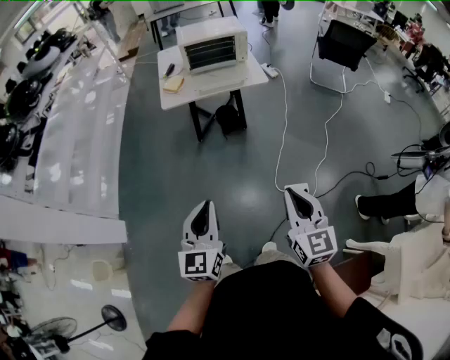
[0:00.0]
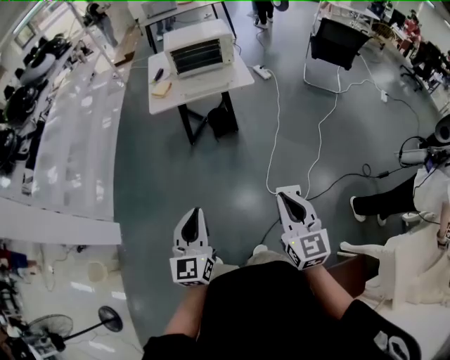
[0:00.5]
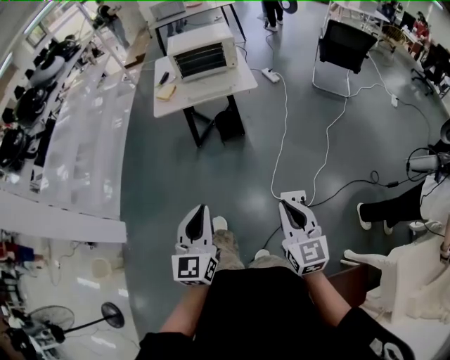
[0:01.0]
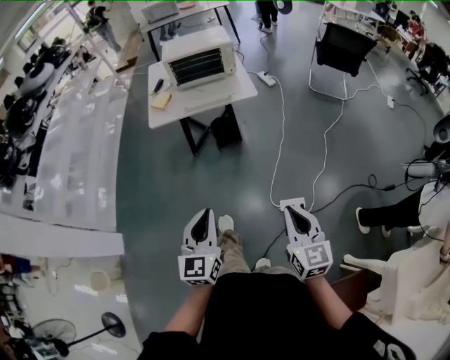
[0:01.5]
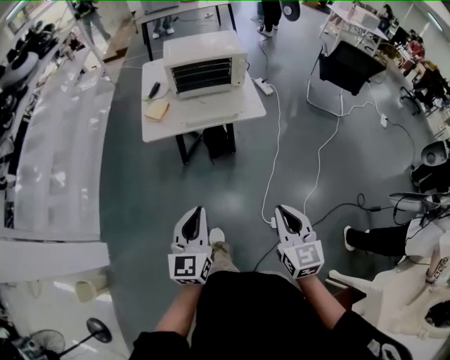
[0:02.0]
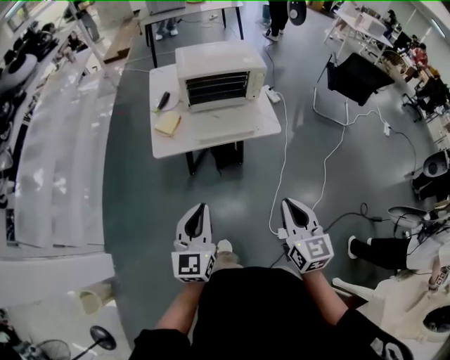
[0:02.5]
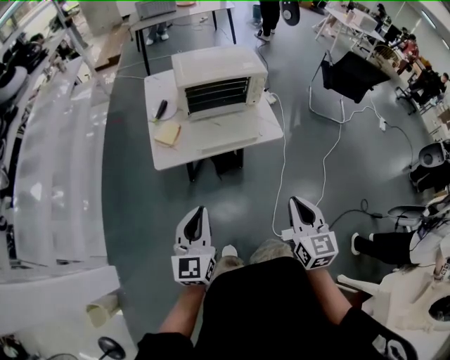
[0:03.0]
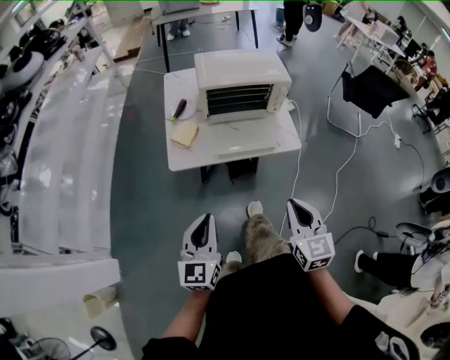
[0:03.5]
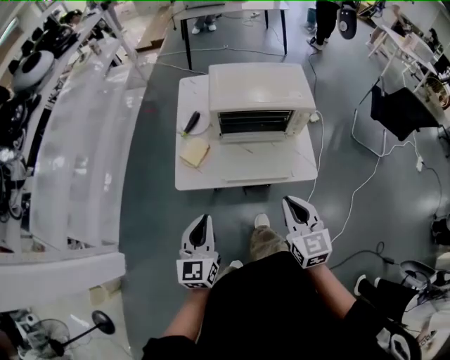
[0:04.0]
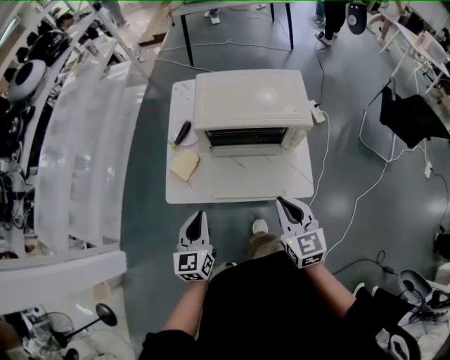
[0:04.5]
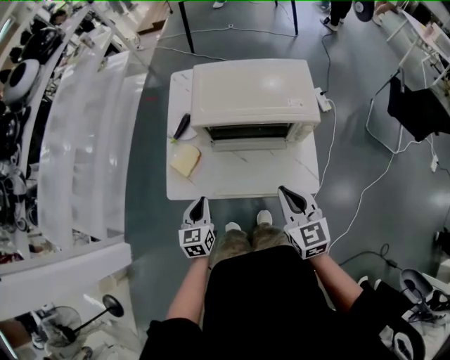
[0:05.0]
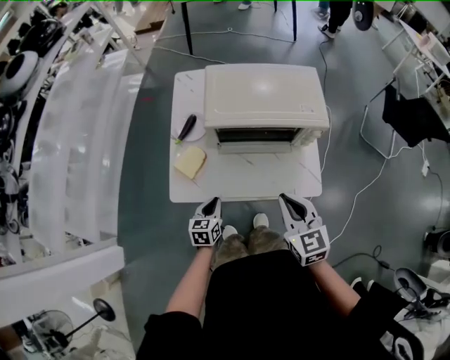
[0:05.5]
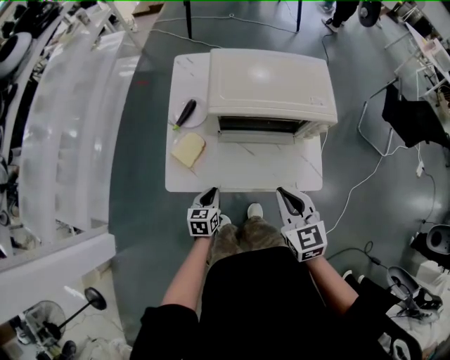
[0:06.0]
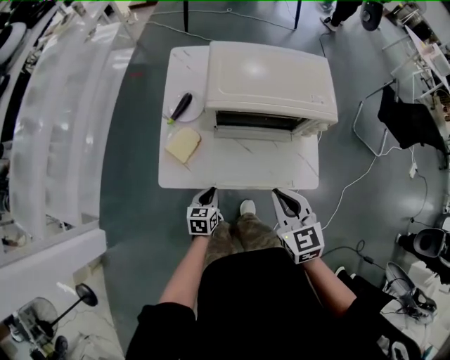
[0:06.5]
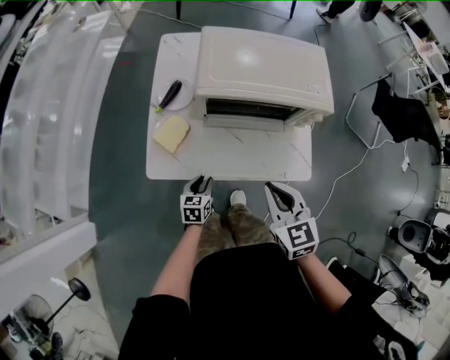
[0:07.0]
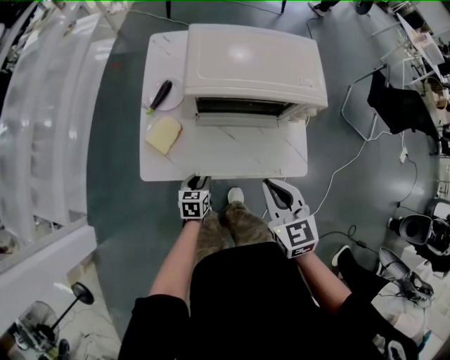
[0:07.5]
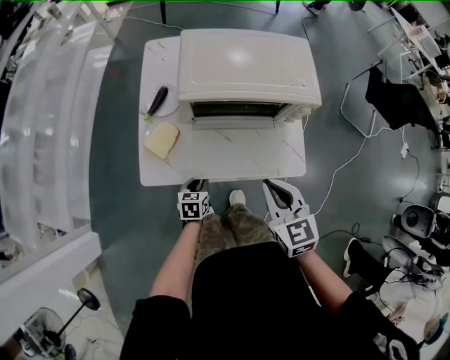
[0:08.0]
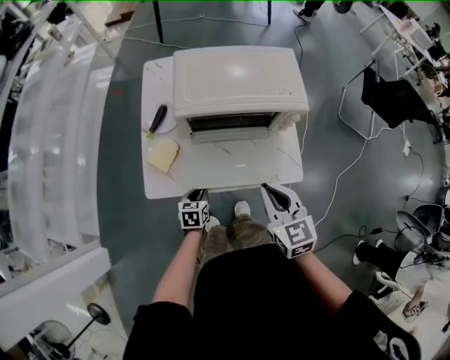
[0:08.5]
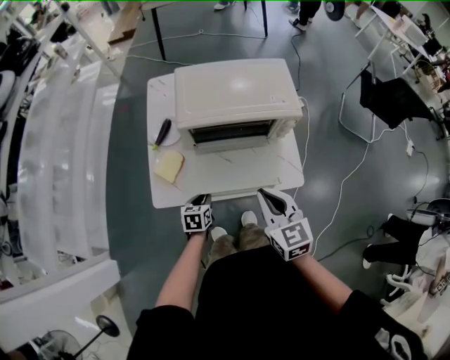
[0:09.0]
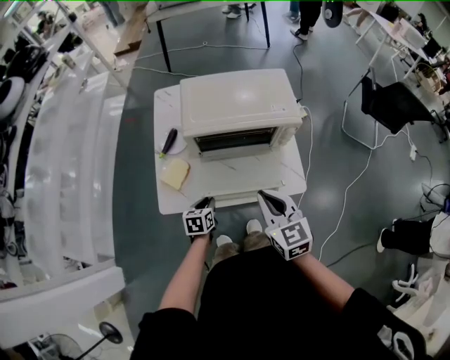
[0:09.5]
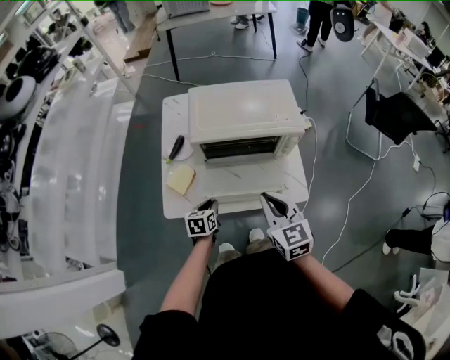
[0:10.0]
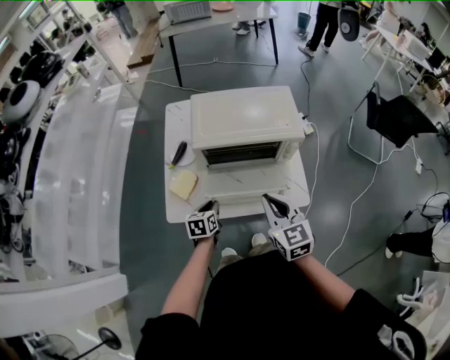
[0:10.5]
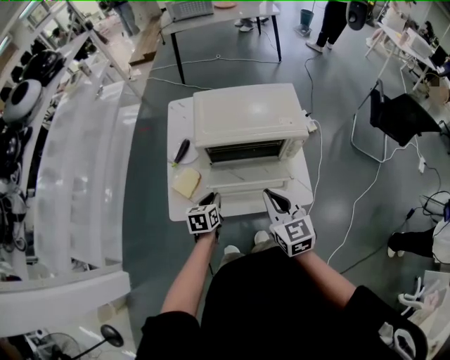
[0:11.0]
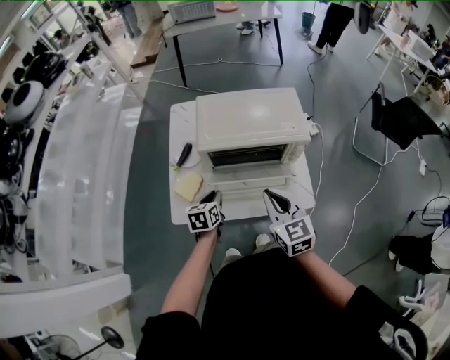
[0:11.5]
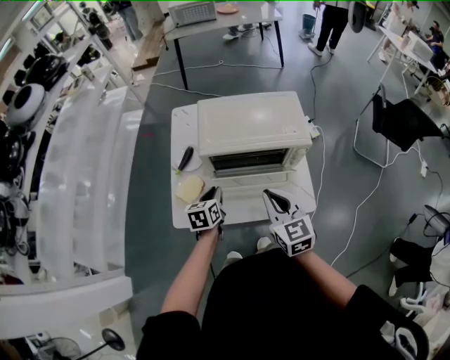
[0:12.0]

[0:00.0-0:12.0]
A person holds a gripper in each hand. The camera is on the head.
0:00.0 to 0:02.0: The grippers both shift forward by some 25 cm.
0:02.0 to 0:04.0: Both grippers move forward, approximately 35 cm.
0:04.0 to 0:06.0: The left gripper moves downward and forward, roughly 30 cm, and swivels roughly 30 degrees, while the right gripper moves forward and downward, approximately 15 cm.
0:06.0 to 0:08.0: The left gripper travels downward by about 5 cm.
0:08.0 to 0:10.0: The left gripper shifts about 10 cm upward; the right gripper goes approximately 5 cm upward.
0:10.0 to 0:12.0: The left gripper moves upward and forward, approximately 10 cm.

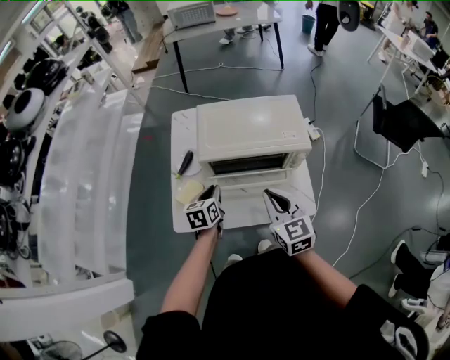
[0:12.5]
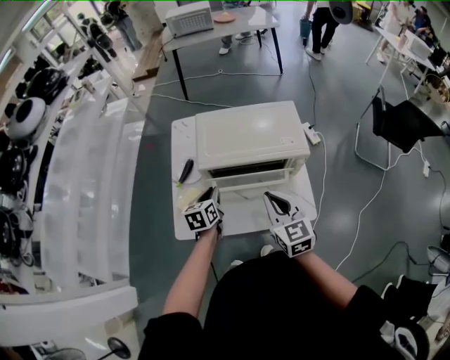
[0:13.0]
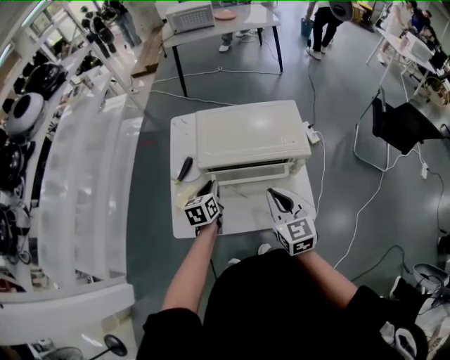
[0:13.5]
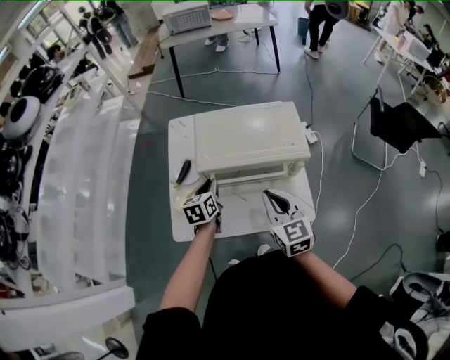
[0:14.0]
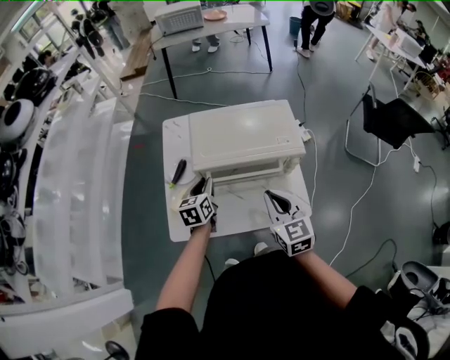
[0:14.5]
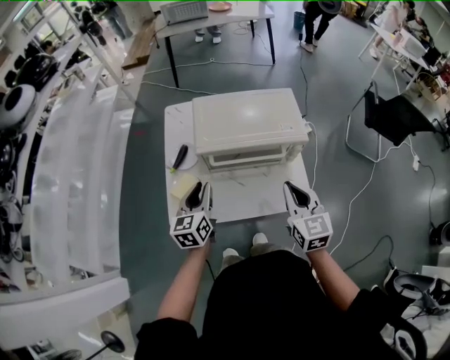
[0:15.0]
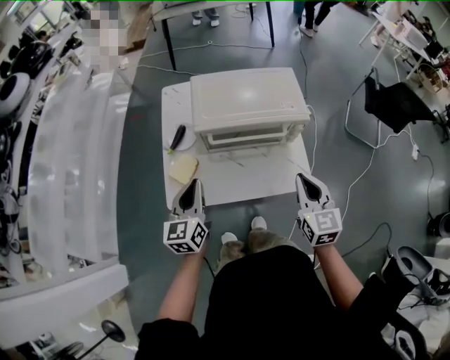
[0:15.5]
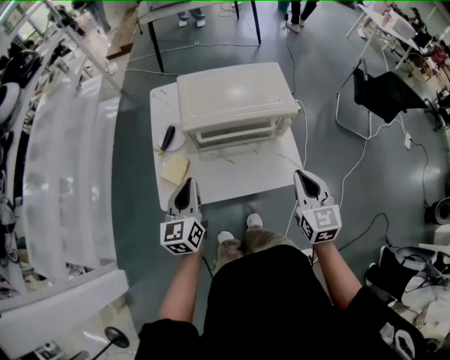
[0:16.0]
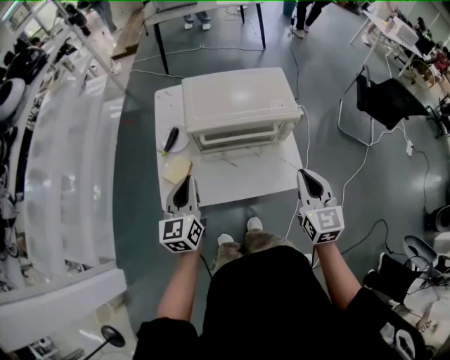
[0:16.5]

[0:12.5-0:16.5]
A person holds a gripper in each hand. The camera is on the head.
0:12.5 to 0:14.5: The left gripper moves forward, about 5 cm.
0:14.5 to 0:16.5: The left gripper goes roughly 20 cm backward and upward, and changes its angle by some 20 degrees; the right gripper is displaced to the right and backward by some 10 cm.

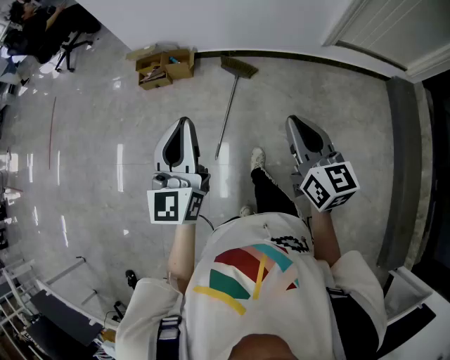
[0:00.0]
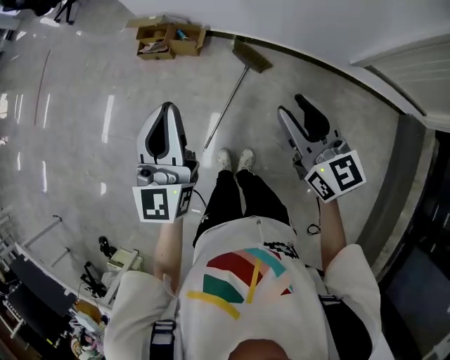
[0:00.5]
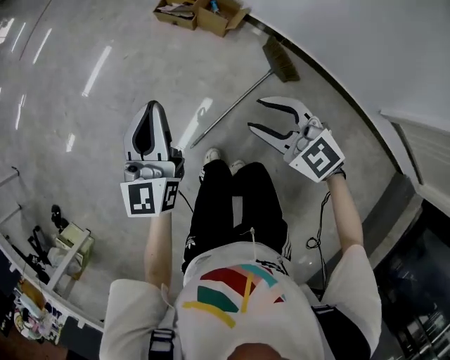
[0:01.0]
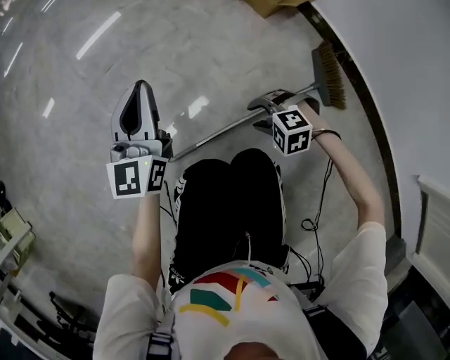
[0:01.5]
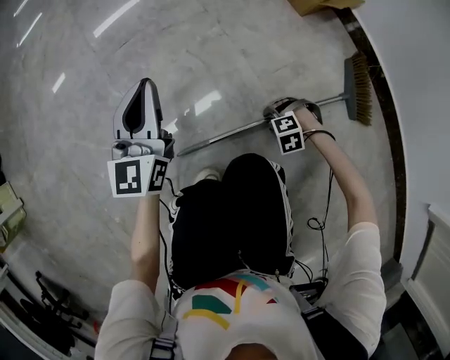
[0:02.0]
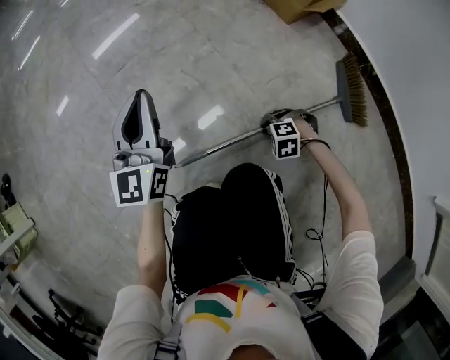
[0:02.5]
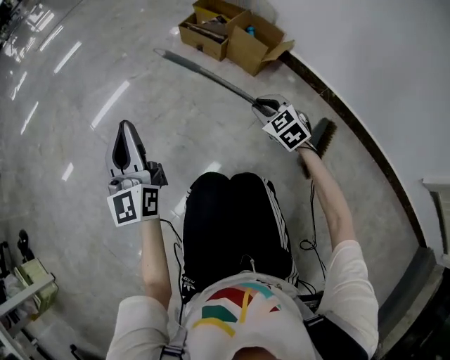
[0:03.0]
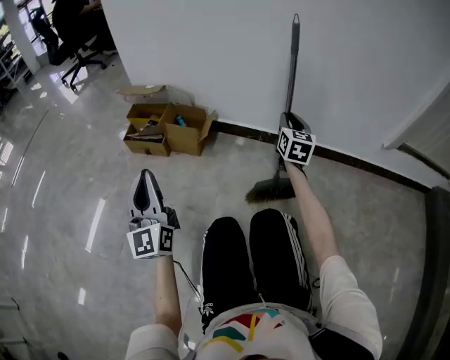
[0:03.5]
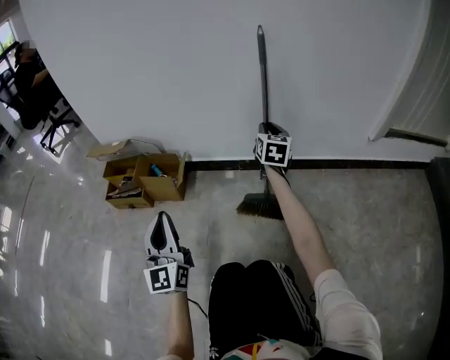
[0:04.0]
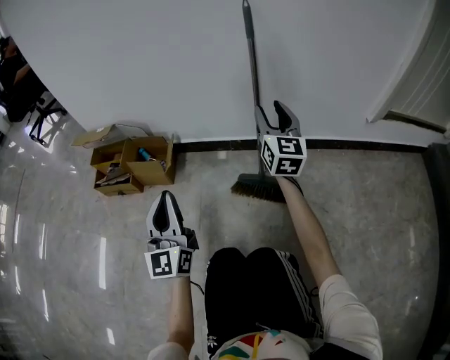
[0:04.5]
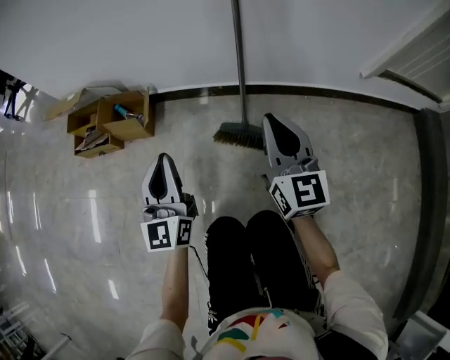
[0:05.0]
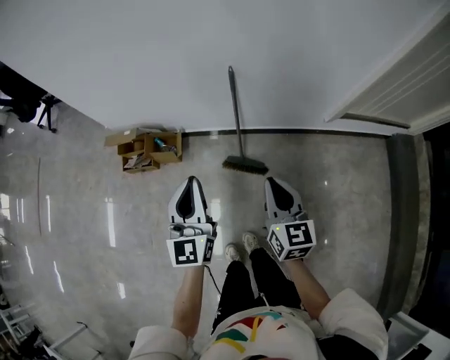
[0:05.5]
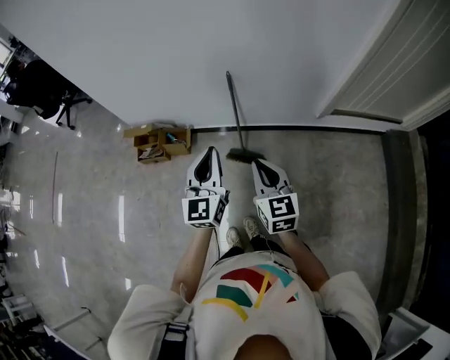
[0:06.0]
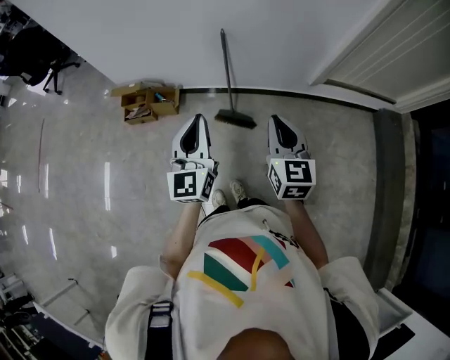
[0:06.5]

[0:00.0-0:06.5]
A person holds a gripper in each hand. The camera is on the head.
0:00.0 to 0:02.0: The grippers both shift downward by approximately 90 cm. The right gripper tips its fingers downward by about 70 degrees, and opens up; the left gripper turns by approximately 50 degrees.
0:02.0 to 0:04.5: The right gripper moves upward, about 50 cm, tilts its fingers some 90 degrees upward, and closes and opens again. Meanwhile the left gripper ends up some 40 cm from where it was, and swivels some 50 degrees.
0:04.5 to 0:06.5: The right gripper goes about 70 cm upward and backward, and closes up. The left gripper goes approximately 60 cm upward.

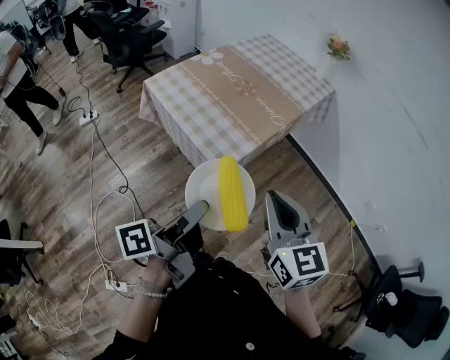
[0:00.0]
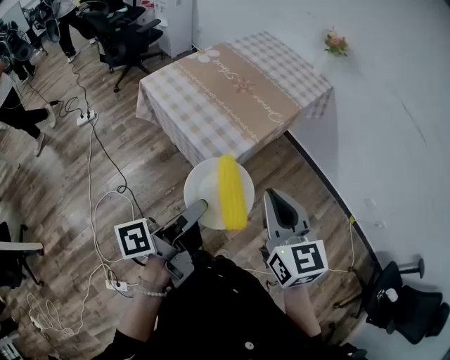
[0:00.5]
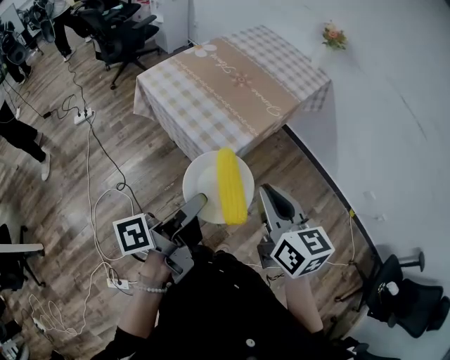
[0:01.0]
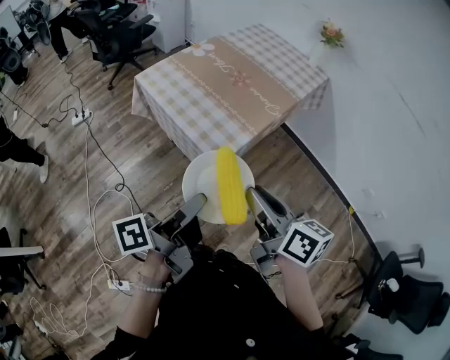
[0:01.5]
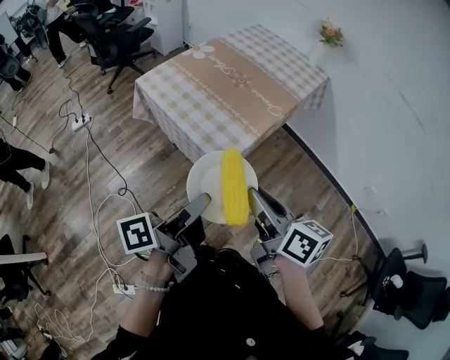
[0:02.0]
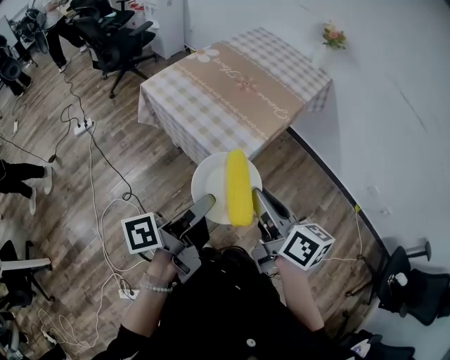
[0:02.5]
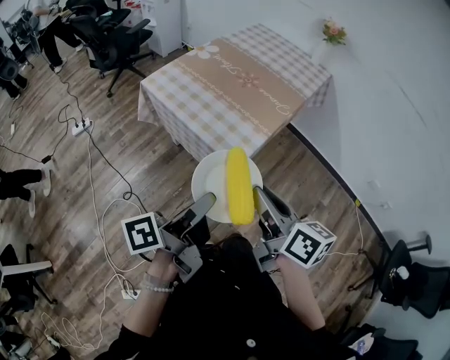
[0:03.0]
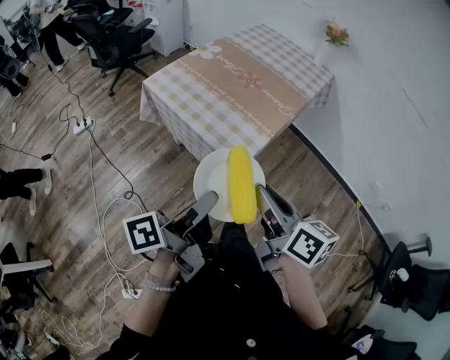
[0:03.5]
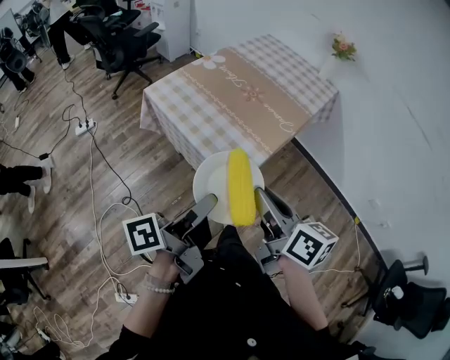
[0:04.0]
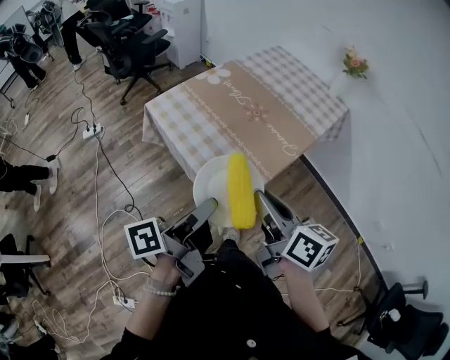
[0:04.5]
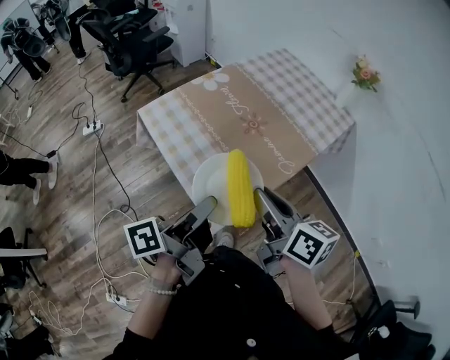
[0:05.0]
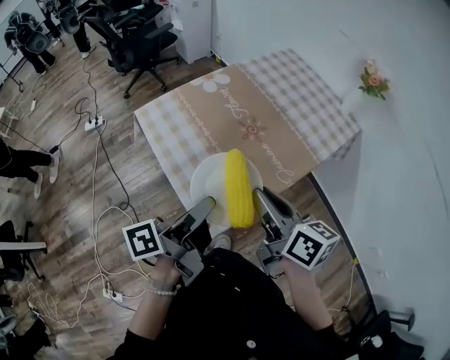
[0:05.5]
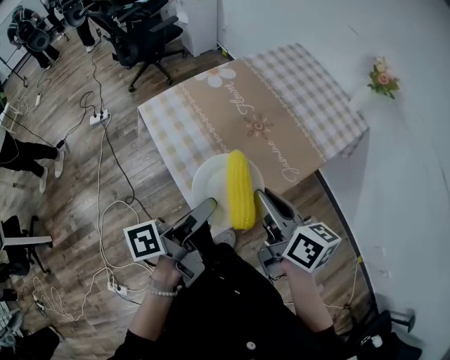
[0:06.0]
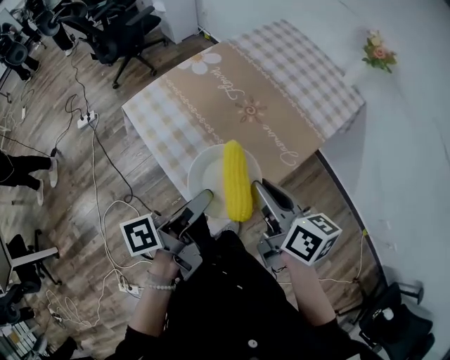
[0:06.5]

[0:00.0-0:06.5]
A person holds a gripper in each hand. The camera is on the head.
0:00.0 to 0:02.0: The right gripper shifts by approximately 5 cm, and turns by roughly 40 degrees.
0:02.0 to 0:04.5: The grippers both shift forward by about 15 cm.
0:04.5 to 0:06.5: Both grippers travel together forward, about 15 cm.
